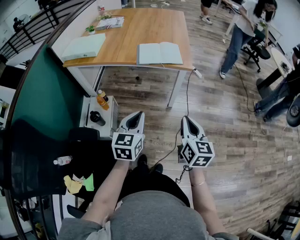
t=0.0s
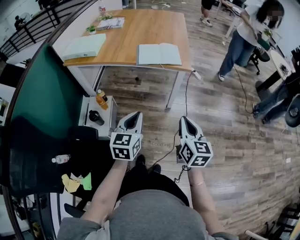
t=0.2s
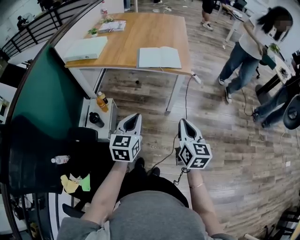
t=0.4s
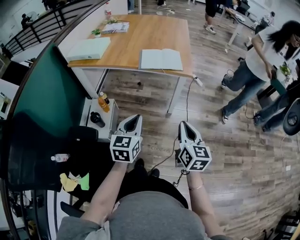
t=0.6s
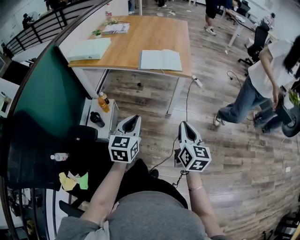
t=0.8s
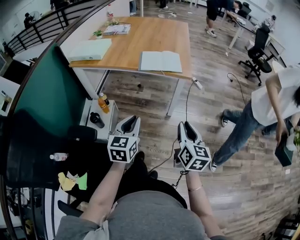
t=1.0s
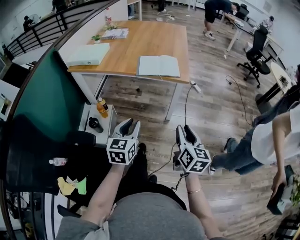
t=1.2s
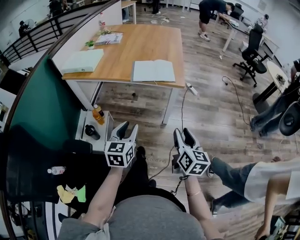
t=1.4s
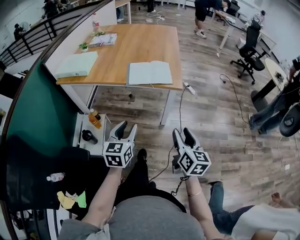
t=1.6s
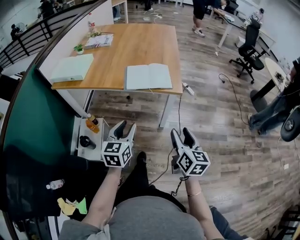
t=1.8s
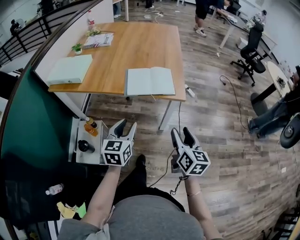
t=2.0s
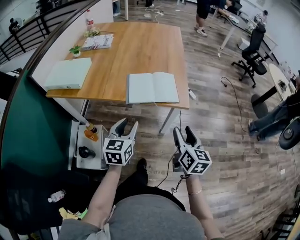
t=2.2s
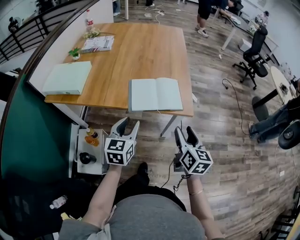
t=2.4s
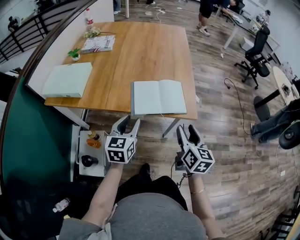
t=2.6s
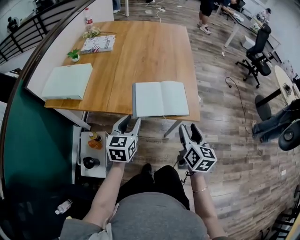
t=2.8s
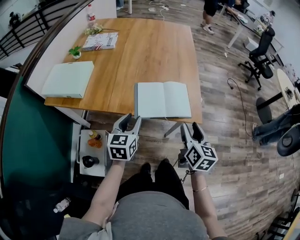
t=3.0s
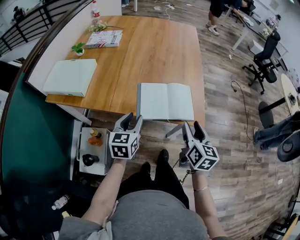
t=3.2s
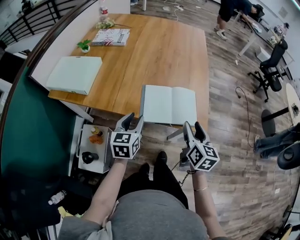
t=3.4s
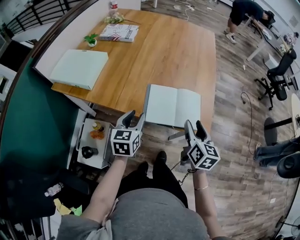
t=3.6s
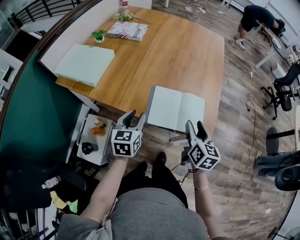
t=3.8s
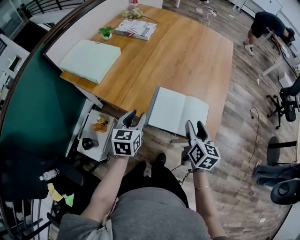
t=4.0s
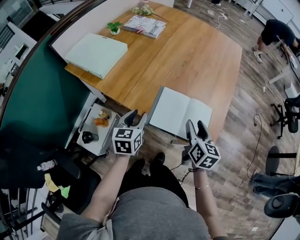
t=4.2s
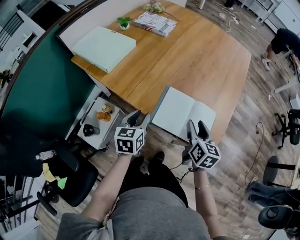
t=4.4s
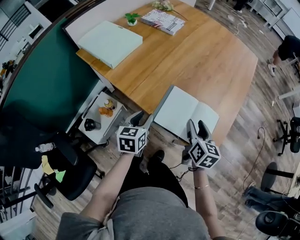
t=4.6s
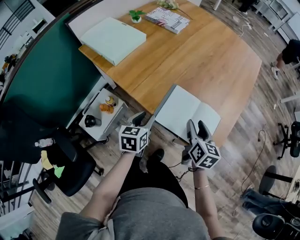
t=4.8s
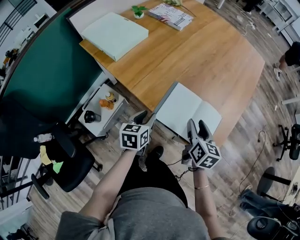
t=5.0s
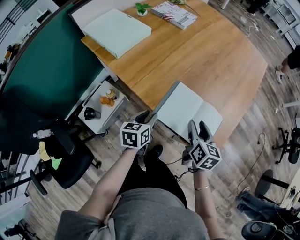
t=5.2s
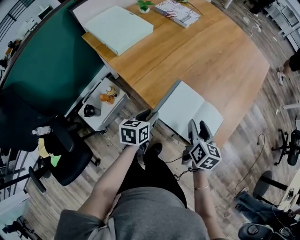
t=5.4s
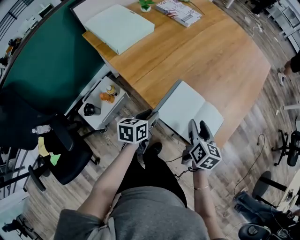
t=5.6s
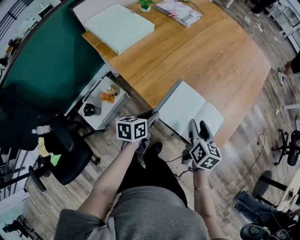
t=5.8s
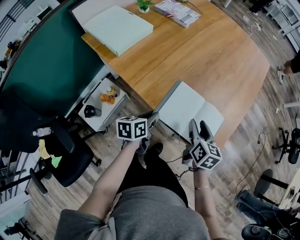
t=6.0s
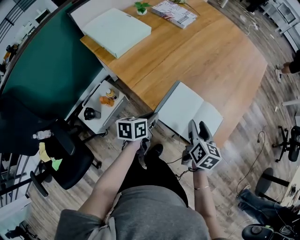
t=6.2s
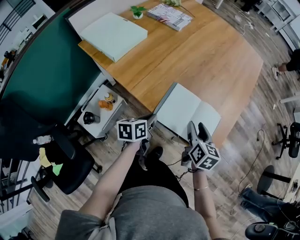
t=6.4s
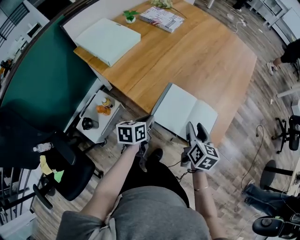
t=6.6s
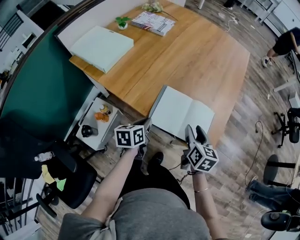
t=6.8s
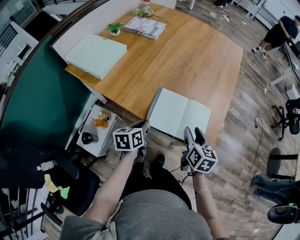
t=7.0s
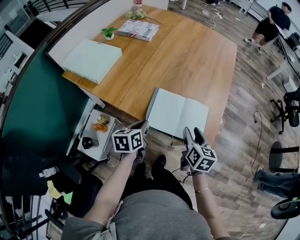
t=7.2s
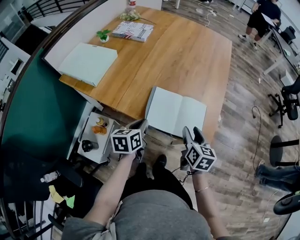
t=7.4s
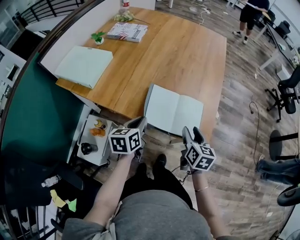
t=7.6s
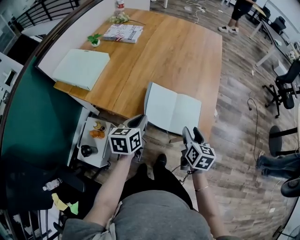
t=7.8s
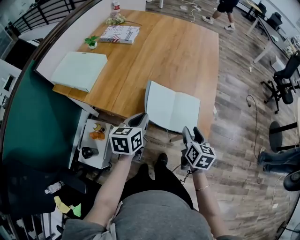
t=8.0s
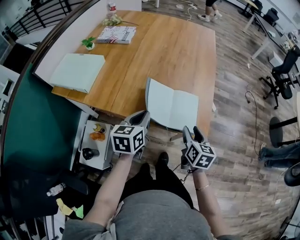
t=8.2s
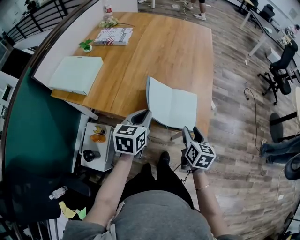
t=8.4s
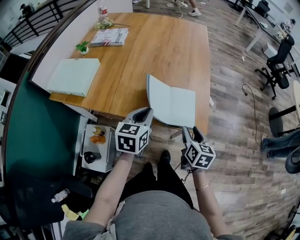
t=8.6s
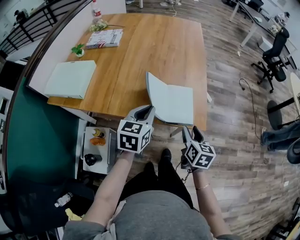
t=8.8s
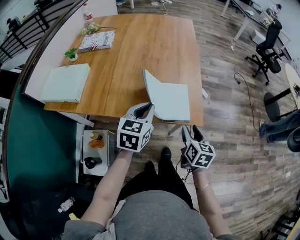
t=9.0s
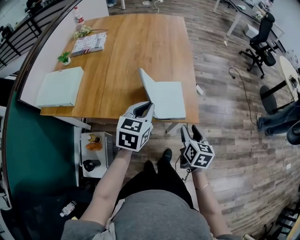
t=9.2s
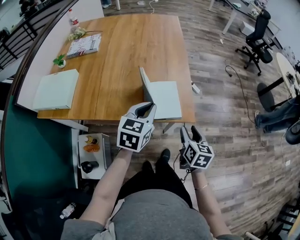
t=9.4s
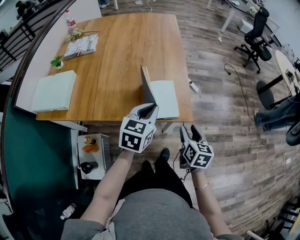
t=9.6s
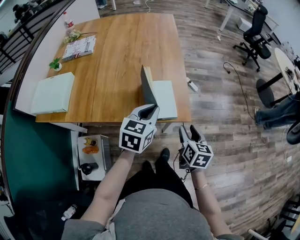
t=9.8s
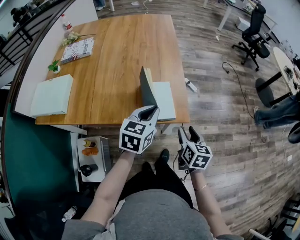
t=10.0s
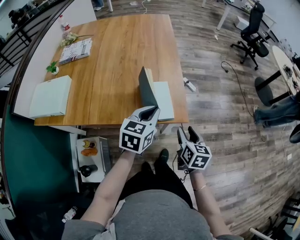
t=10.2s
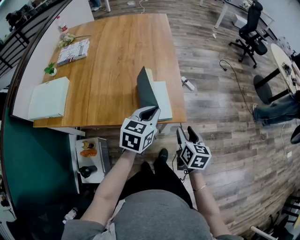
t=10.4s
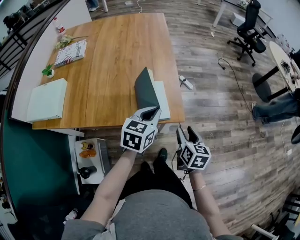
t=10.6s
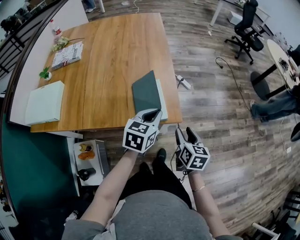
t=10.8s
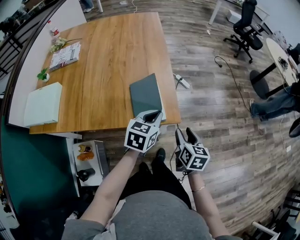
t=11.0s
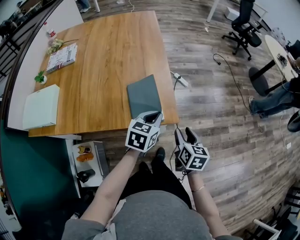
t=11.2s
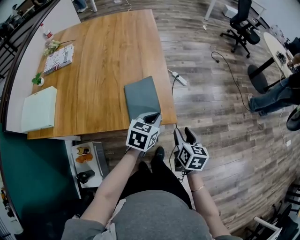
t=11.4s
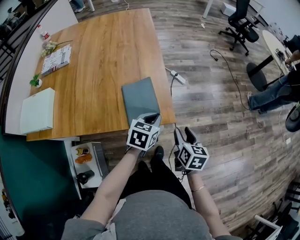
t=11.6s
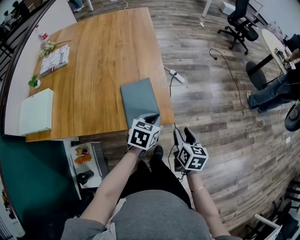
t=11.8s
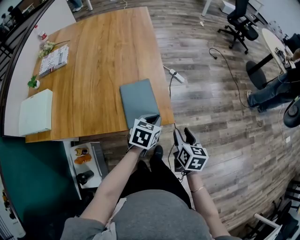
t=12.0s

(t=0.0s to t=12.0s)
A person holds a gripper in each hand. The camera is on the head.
t=0.0s - t=1.6s: The grippers both shift forward by about 5 cm. The left gripper opens; the right gripper opens.
t=1.6s - t=3.0s: The two grippers go roughly 30 cm forward.
t=3.0s - t=4.4s: The left gripper shifts about 5 cm downward, and changes its angle by some 30 degrees, while the right gripper is displaced forward by roughly 15 cm, and swivels roughly 30 degrees.
t=4.4s - t=6.0s: The left gripper travels downward by approximately 5 cm, and rotates about 30 degrees.
t=6.0s - t=7.6s: The left gripper goes roughly 5 cm upward, and turns by roughly 20 degrees; the right gripper goes approximately 10 cm backward and to the right.
t=7.6s - t=9.0s: The right gripper heads backward, covering some 5 cm, while the left gripper is displaced to the right and upward by about 10 cm, and turns by some 30 degrees.
t=9.0s - t=10.4s: The right gripper travels to the right by roughly 5 cm. The left gripper travels to the right by some 10 cm.
t=10.4s - t=12.0s: The right gripper ends up about 5 cm from where it was. Meanwhile the left gripper heads downward and to the right, covering about 15 cm.

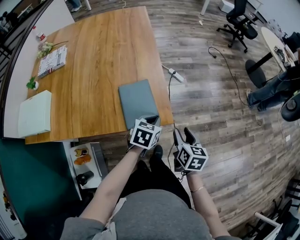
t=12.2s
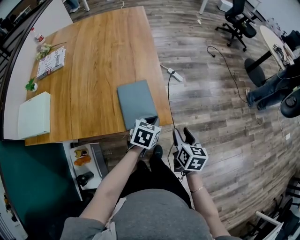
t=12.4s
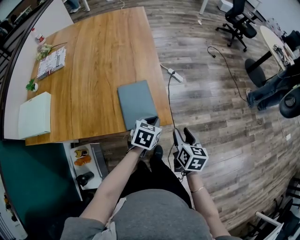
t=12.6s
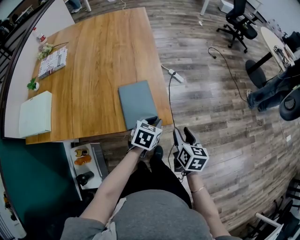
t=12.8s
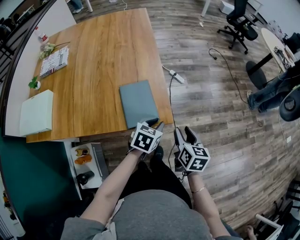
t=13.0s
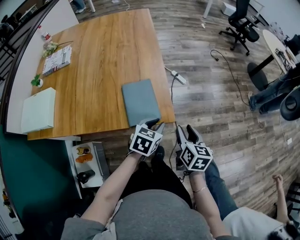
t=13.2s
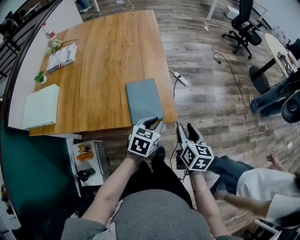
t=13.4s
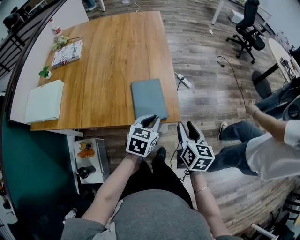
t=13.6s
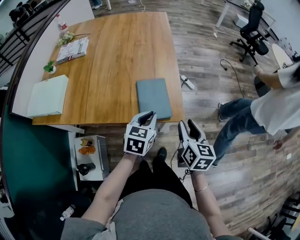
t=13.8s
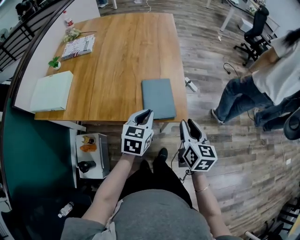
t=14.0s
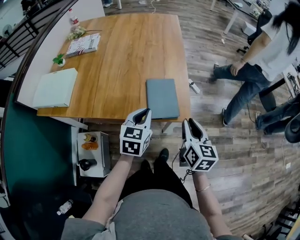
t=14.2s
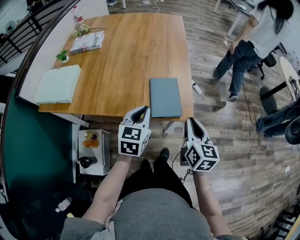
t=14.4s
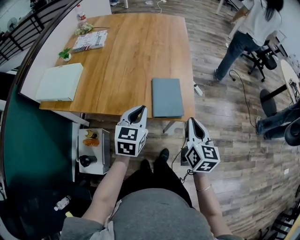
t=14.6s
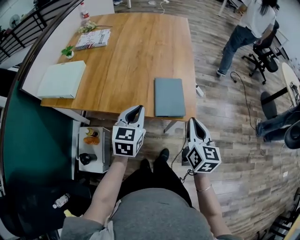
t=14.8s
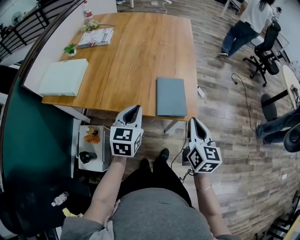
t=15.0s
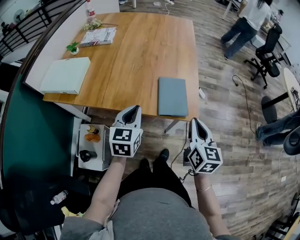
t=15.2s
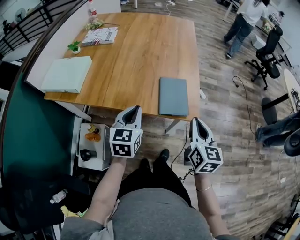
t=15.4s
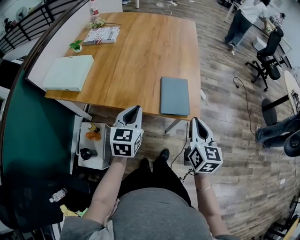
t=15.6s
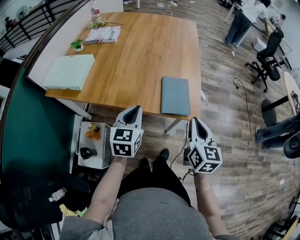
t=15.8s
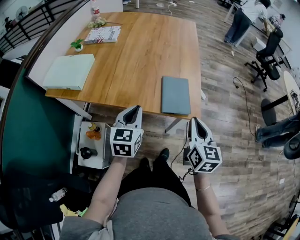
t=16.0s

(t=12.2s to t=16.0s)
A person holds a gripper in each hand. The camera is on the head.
t=12.2s - t=13.4s: The grippers move only a little.
t=13.4s - t=14.8s: The right gripper goes approximately 10 cm upward and to the left, and closes its fingers. The left gripper heads to the left and upward, covering approximately 20 cm, and changes its angle by some 30 degrees.
t=14.8s - t=16.0s: The left gripper ends up roughly 5 cm from where it was.

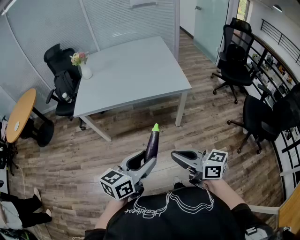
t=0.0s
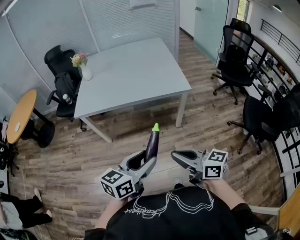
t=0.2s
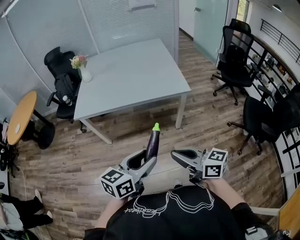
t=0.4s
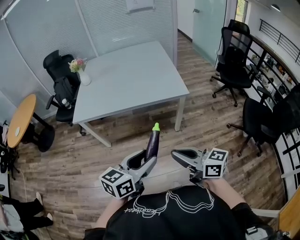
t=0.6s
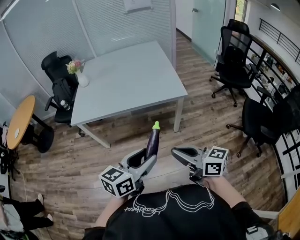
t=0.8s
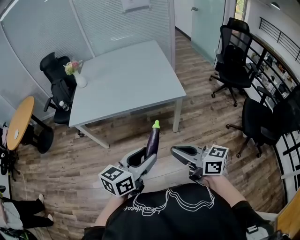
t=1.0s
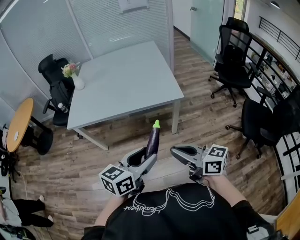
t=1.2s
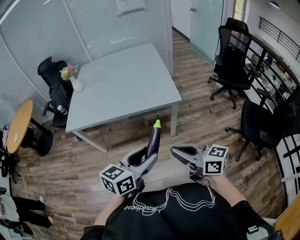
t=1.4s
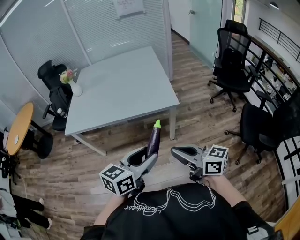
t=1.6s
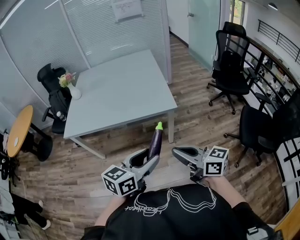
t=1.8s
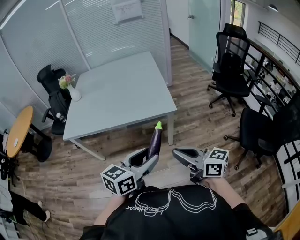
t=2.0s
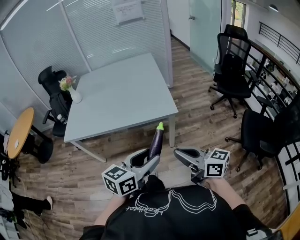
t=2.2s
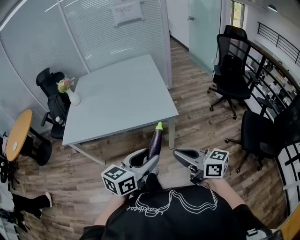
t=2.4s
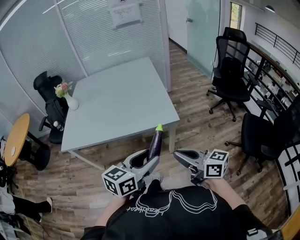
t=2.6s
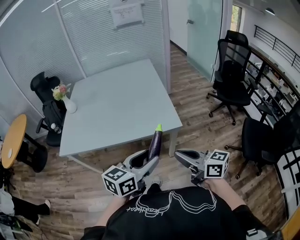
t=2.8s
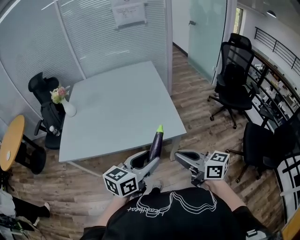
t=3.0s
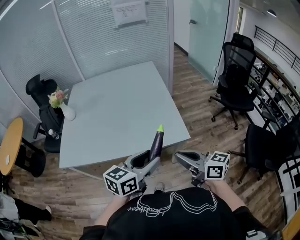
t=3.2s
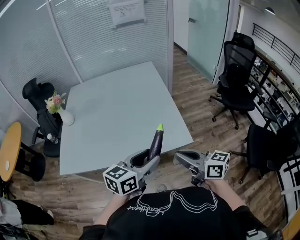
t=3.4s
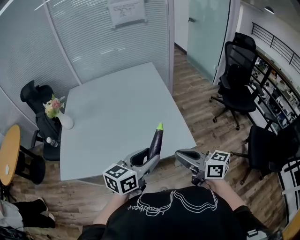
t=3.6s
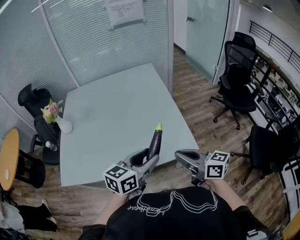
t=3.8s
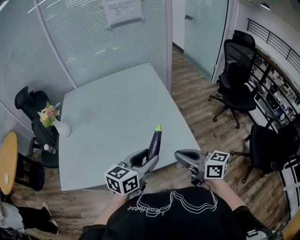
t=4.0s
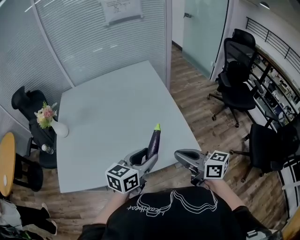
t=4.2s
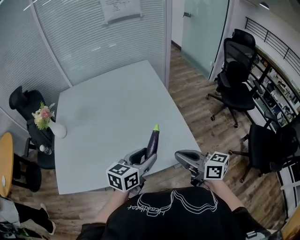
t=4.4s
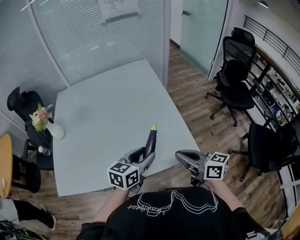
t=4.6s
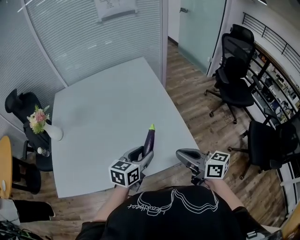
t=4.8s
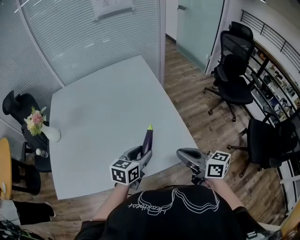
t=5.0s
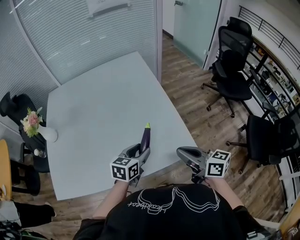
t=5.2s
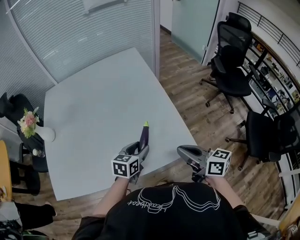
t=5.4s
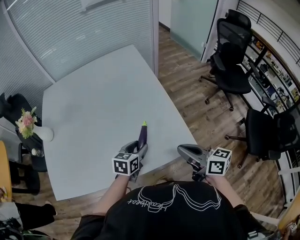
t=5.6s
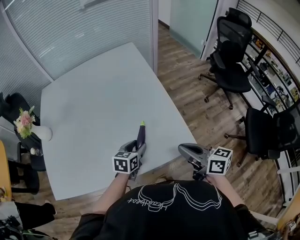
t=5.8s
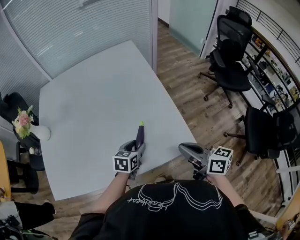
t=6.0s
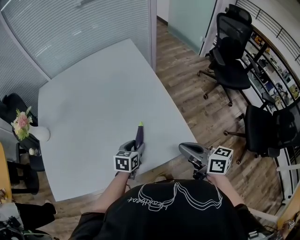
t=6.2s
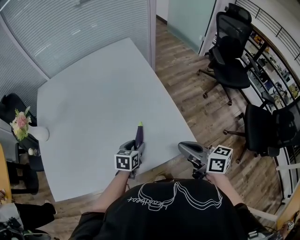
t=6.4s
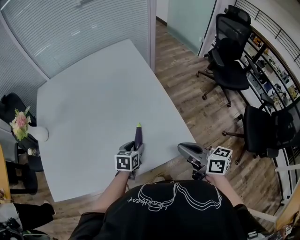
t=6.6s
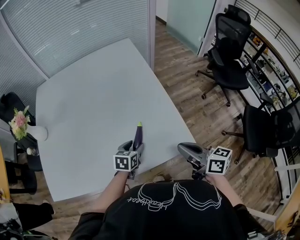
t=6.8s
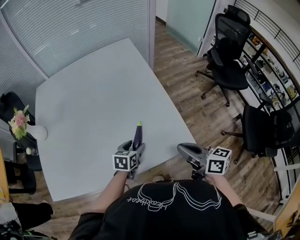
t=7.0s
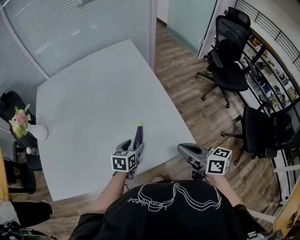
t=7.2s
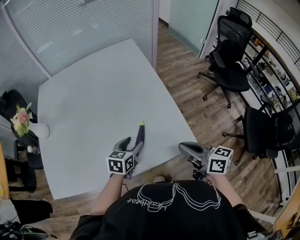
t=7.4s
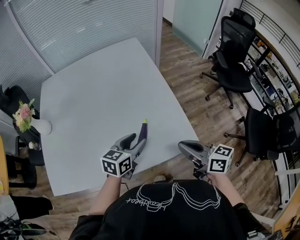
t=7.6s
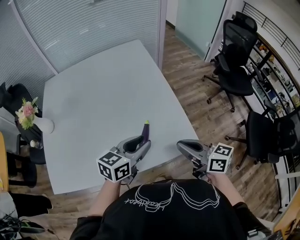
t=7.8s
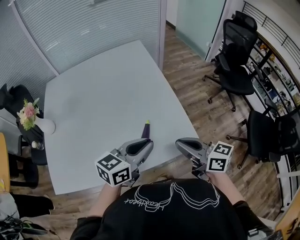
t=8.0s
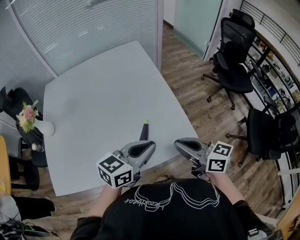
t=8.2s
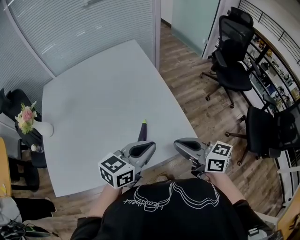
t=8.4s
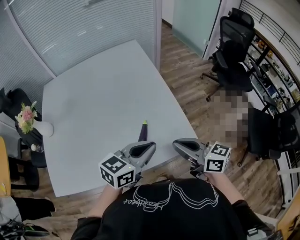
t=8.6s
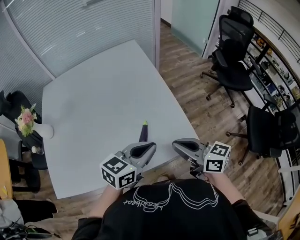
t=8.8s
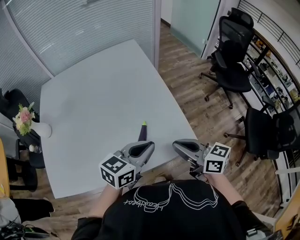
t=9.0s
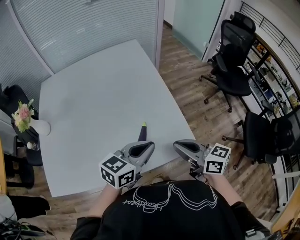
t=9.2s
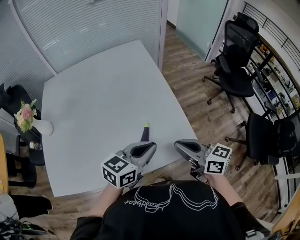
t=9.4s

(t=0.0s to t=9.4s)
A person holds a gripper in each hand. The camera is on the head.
t=0.0s - t=1.6s: Both grippers move to the right and forward, about 20 cm.
t=1.6s - t=3.2s: The two grippers go roughly 25 cm forward.
t=3.2s - t=4.8s: The right gripper heads forward, covering roughly 20 cm. Meanwhile the left gripper moves forward and downward, about 25 cm.
t=4.8s - t=6.2s: The right gripper heads downward, covering approximately 5 cm. The left gripper moves downward and forward, about 15 cm.
t=6.2s - t=7.8s: The right gripper shifts by approximately 5 cm. Meanwhile the left gripper goes approximately 15 cm upward, and rotates approximately 30 degrees.
t=7.8s - t=9.4s: The left gripper closes up.
